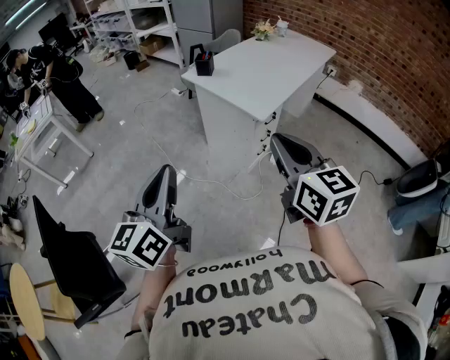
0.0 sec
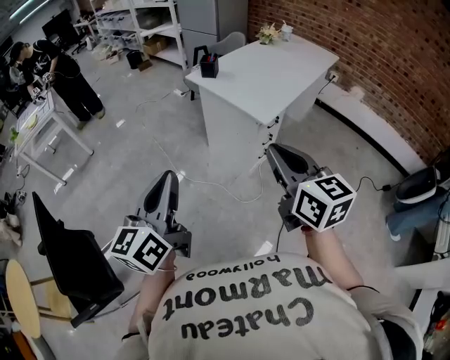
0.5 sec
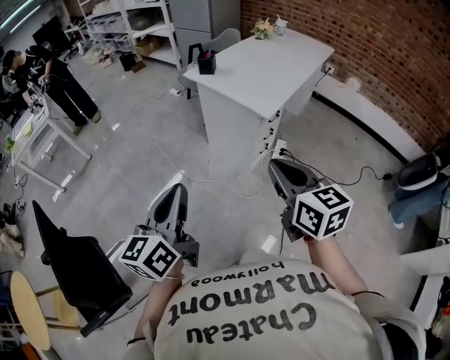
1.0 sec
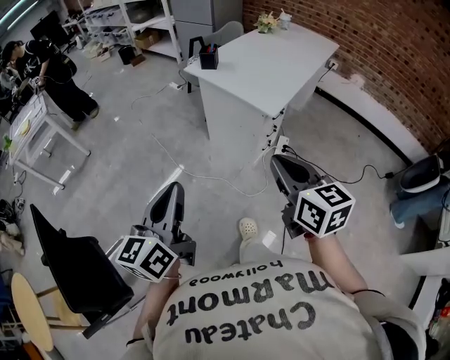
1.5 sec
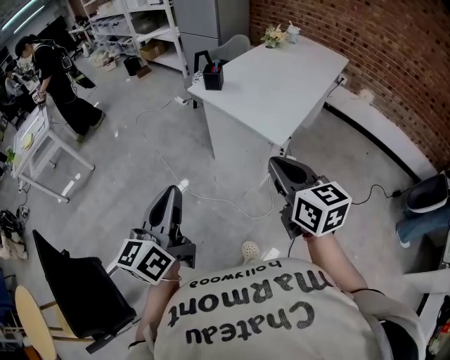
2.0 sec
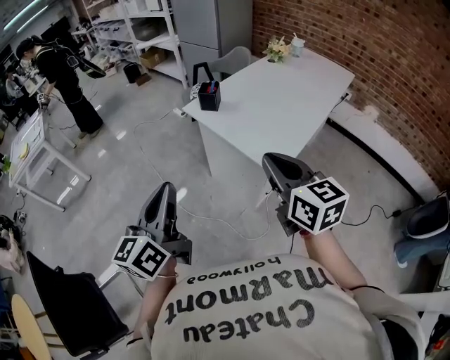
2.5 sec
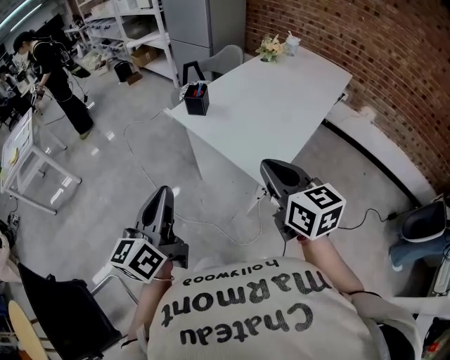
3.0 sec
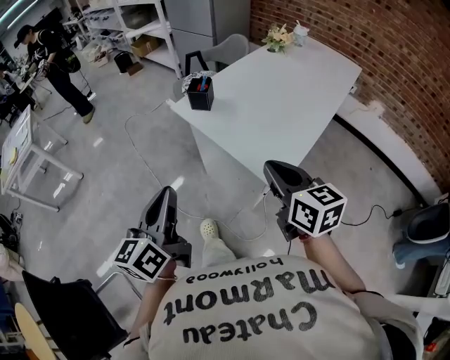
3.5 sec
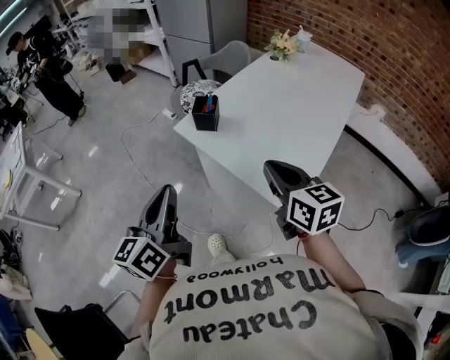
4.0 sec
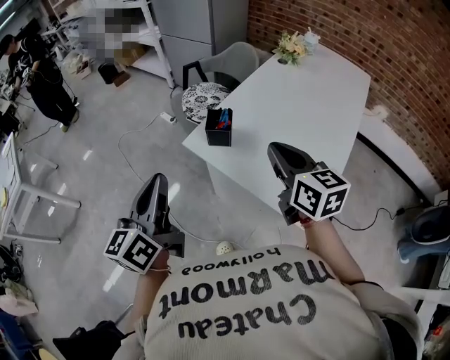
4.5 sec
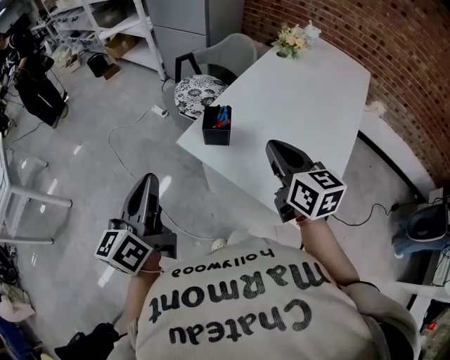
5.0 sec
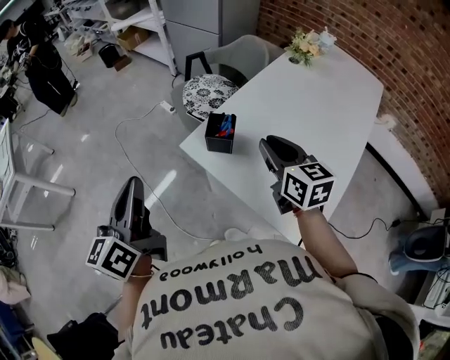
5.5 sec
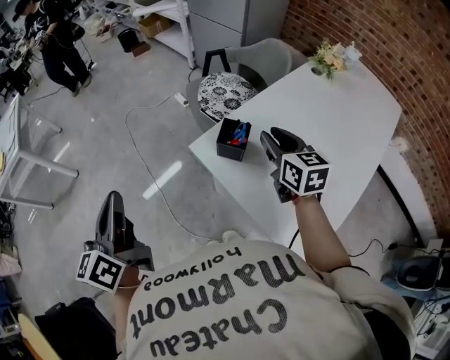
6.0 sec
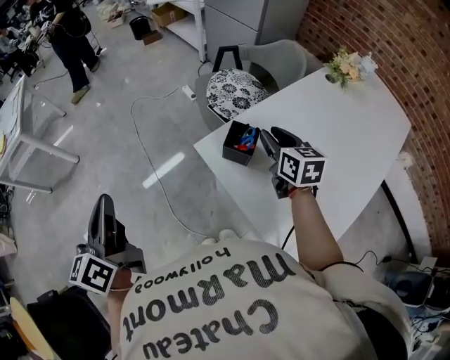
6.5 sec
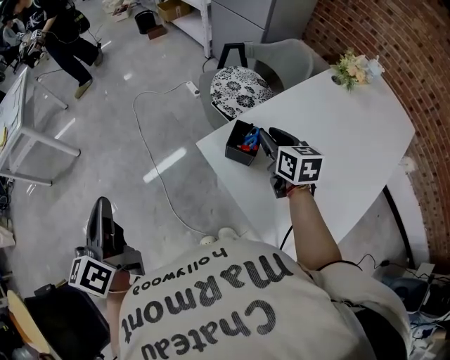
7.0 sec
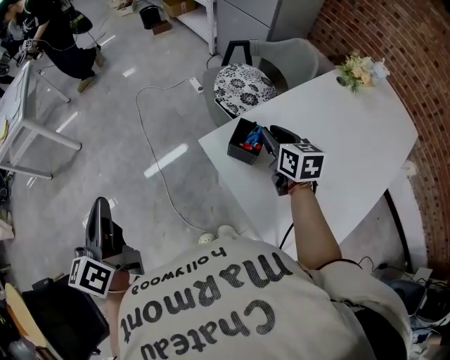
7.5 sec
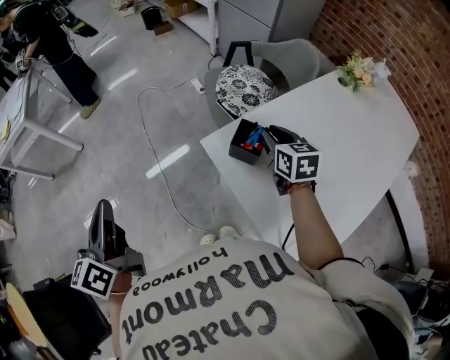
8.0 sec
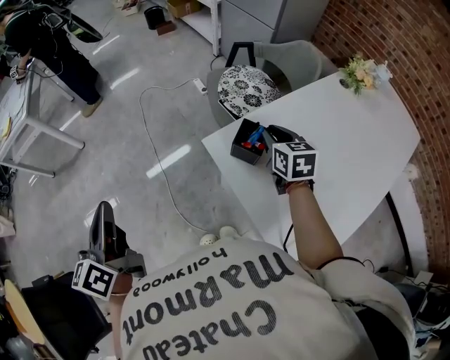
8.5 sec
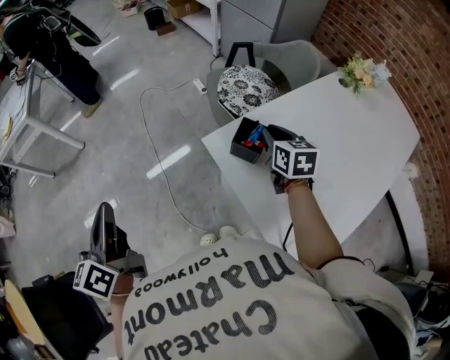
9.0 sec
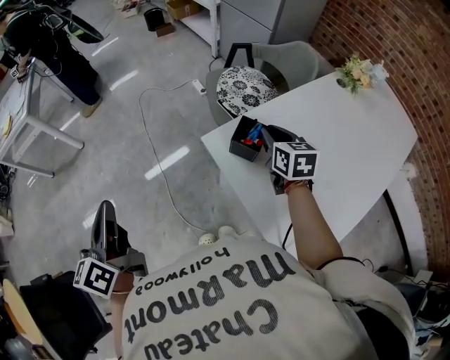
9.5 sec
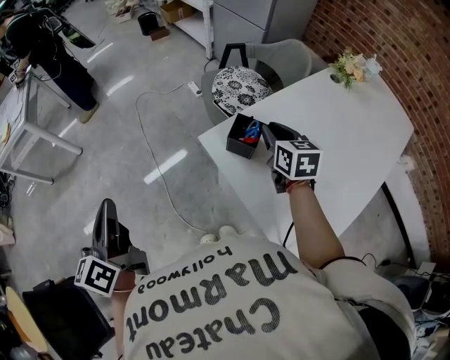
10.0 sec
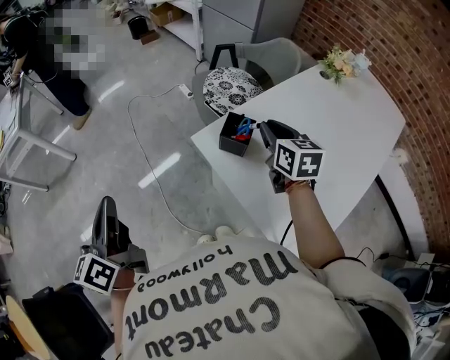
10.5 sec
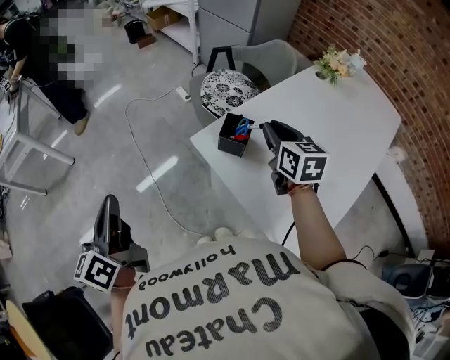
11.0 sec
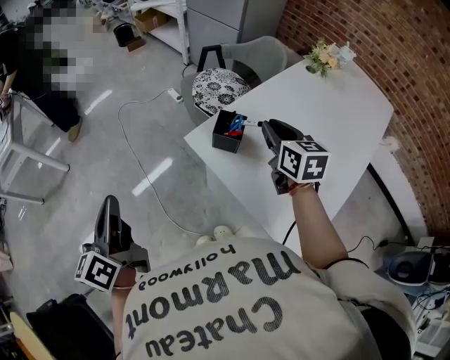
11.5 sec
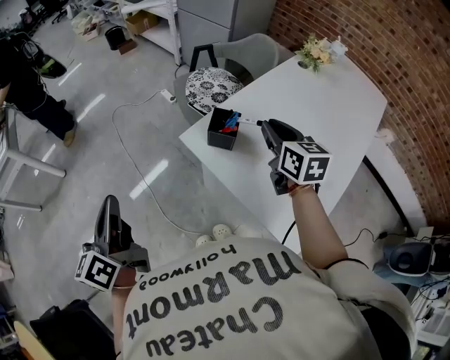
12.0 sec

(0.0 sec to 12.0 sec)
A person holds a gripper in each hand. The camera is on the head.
0.0 sec - 2.0 sec: The right gripper is displaced forward and downward by approximately 15 cm. The left gripper moves forward, roughly 15 cm.
2.0 sec - 4.0 sec: Both grippers move forward, approximately 35 cm.
4.0 sec - 6.0 sec: The right gripper travels forward by roughly 30 cm, and opens its fingers. The left gripper shifts approximately 25 cm forward and to the left, and rotates some 20 degrees.
6.0 sec - 8.0 sec: The left gripper moves some 5 cm. Meanwhile the right gripper goes some 10 cm forward and downward.
8.0 sec - 10.0 sec: The grippers make only small movements.
10.0 sec - 12.0 sec: The right gripper heads backward and upward, covering approximately 10 cm.

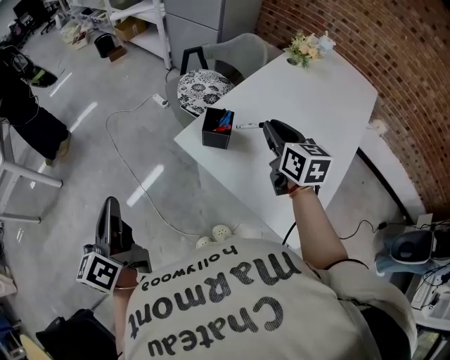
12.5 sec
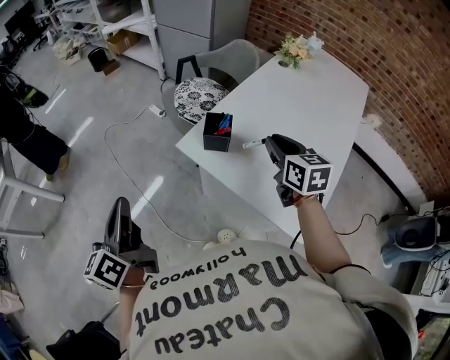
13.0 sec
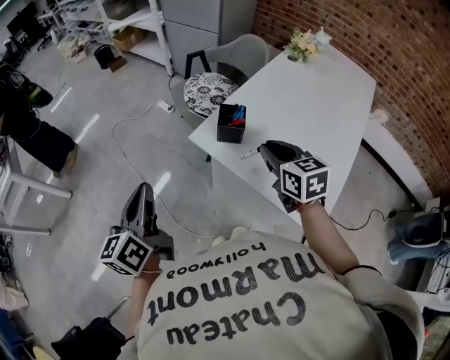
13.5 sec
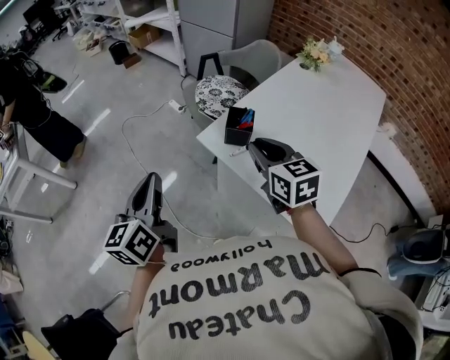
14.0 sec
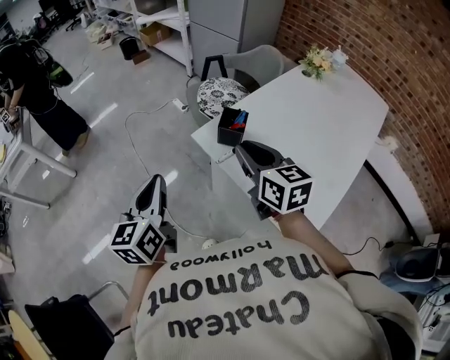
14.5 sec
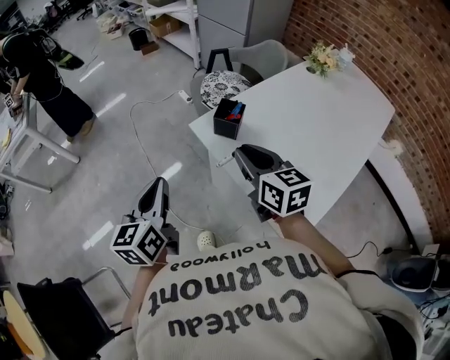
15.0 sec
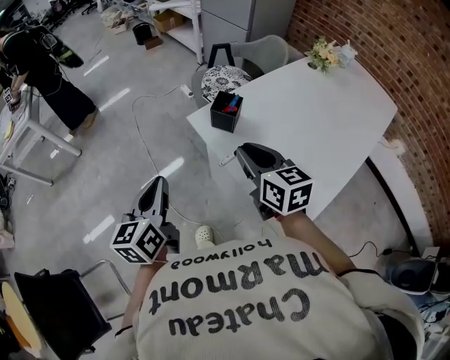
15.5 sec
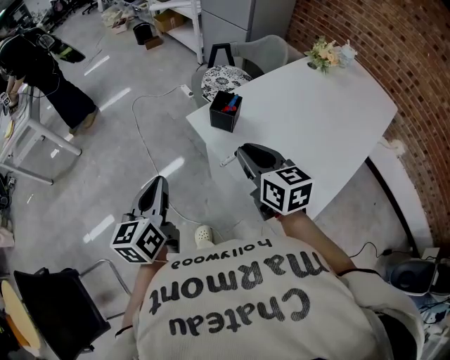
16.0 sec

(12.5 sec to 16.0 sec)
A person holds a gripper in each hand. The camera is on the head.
12.5 sec - 14.5 sec: The right gripper is displaced to the left and backward by approximately 15 cm, while the left gripper is displaced to the right by some 10 cm.
14.5 sec - 16.0 sec: Both grippers travel together backward, about 5 cm.

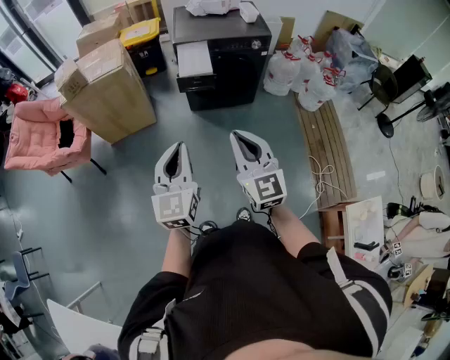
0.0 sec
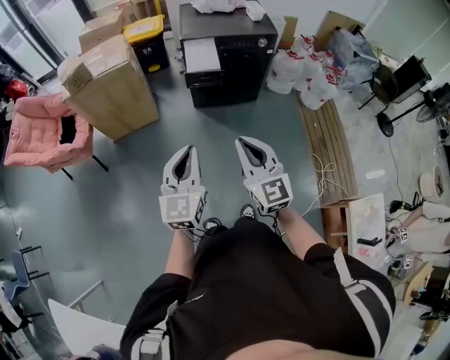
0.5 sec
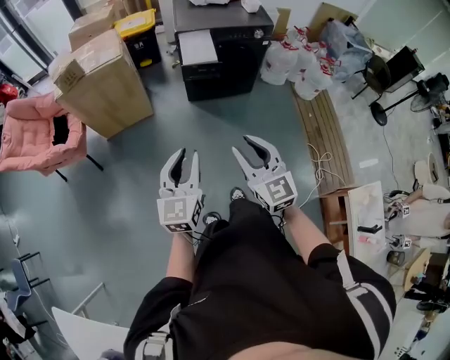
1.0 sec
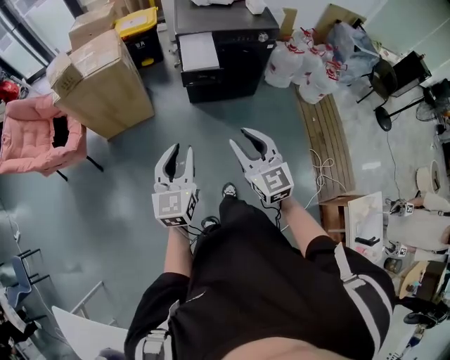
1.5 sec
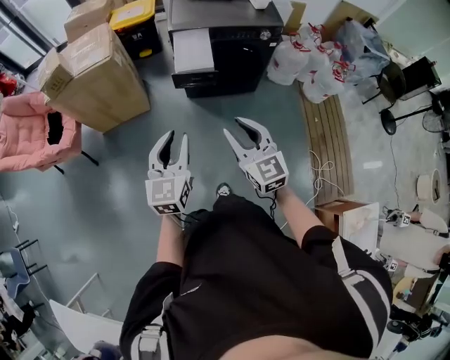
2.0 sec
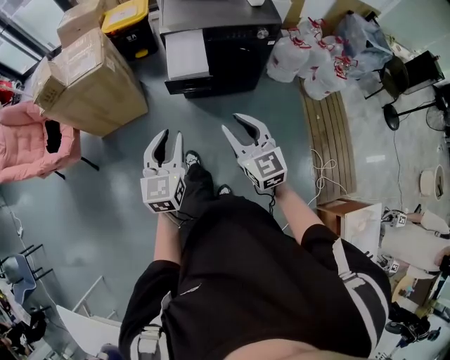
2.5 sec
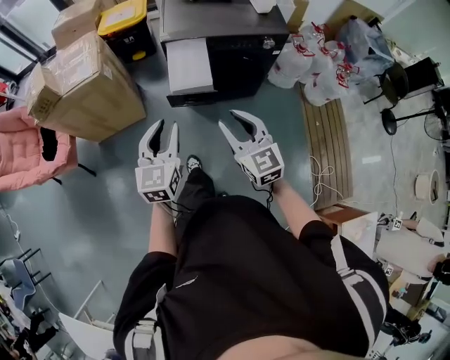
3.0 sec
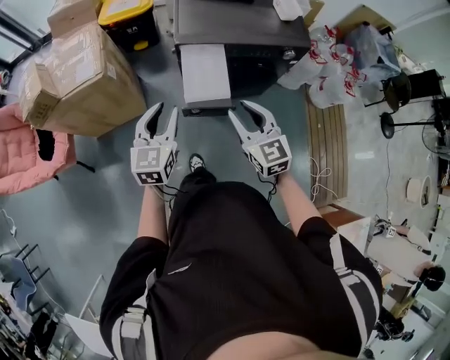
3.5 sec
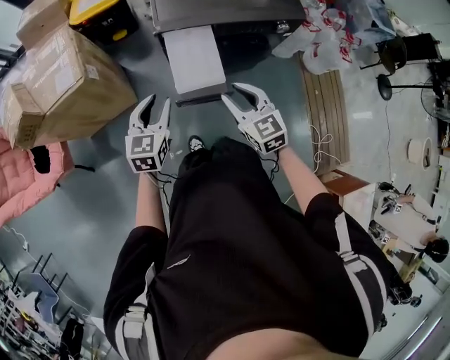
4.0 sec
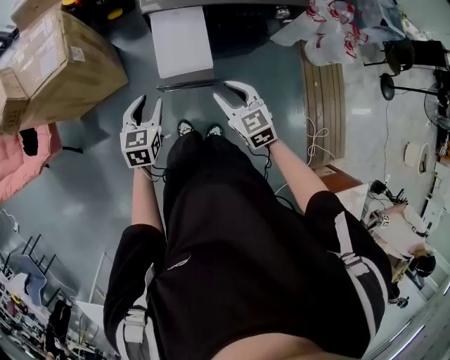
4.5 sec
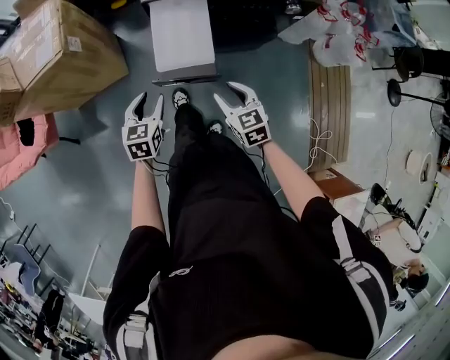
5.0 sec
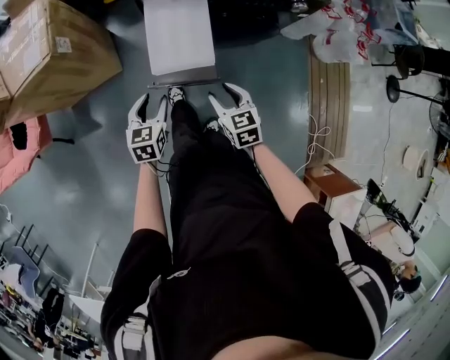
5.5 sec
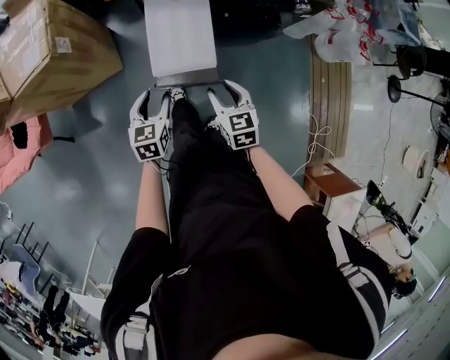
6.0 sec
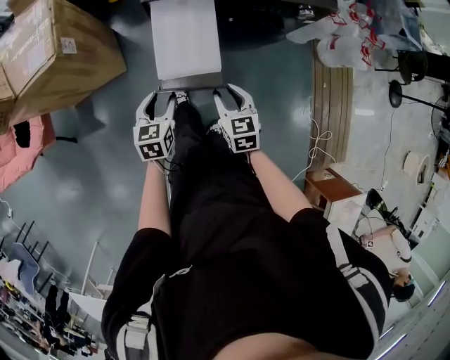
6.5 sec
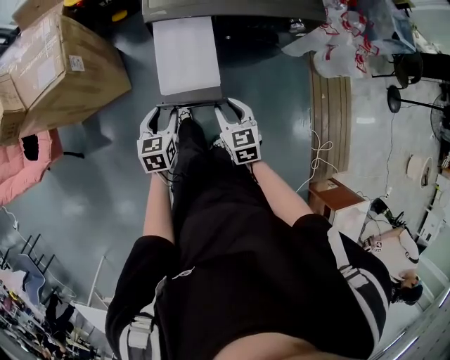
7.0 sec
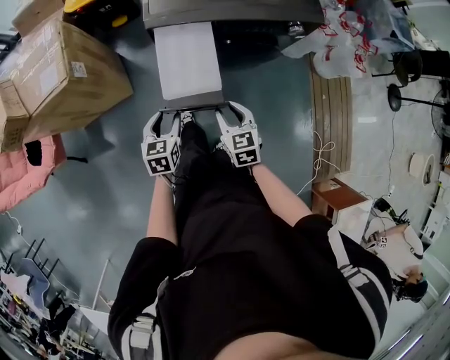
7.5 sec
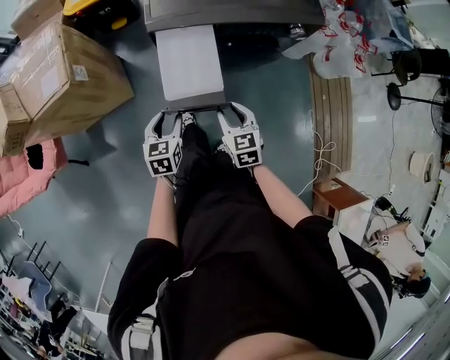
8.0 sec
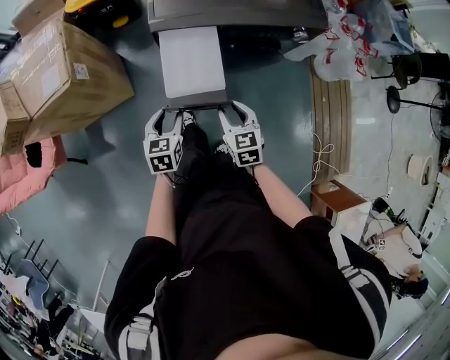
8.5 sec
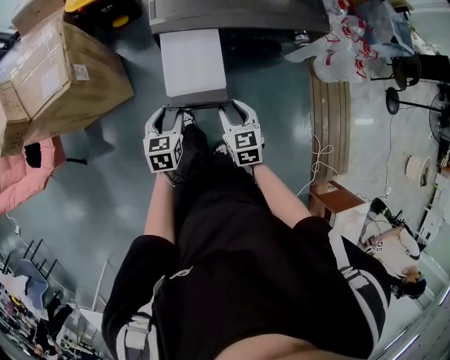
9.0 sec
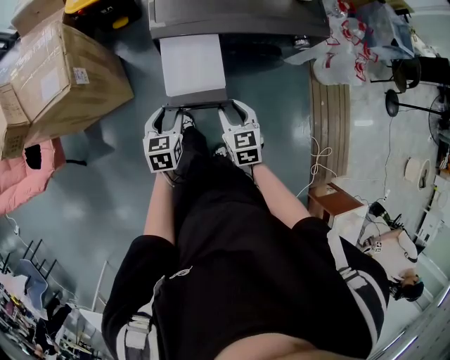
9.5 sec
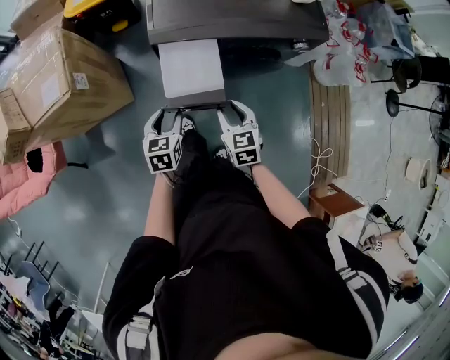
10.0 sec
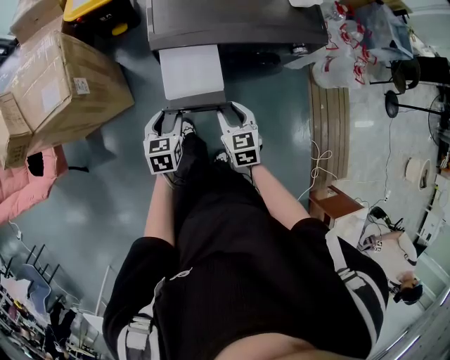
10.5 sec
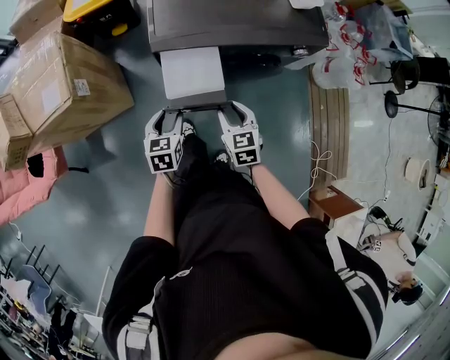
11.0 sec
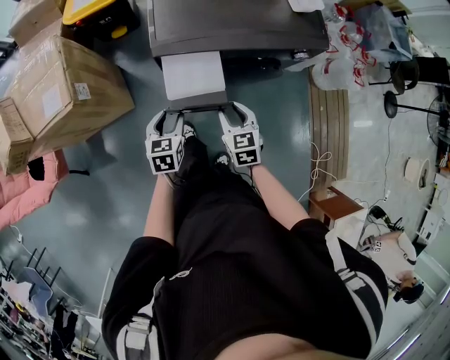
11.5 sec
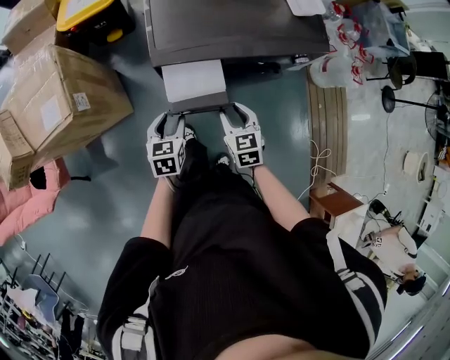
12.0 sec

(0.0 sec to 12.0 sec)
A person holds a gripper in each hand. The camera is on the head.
0.0 sec - 2.0 sec: Both grippers travel together forward and downward, about 15 cm. The right gripper opens. The left gripper opens up.
2.0 sec - 4.0 sec: Both grippers travel together forward, approximately 35 cm.
4.0 sec - 6.0 sec: Both grippers move downward, about 20 cm.
6.0 sec - 8.0 sec: The grippers move only a little.
8.0 sec - 10.0 sec: The two grippers go about 5 cm forward.
10.0 sec - 12.0 sec: Both grippers move forward, approximately 5 cm.
